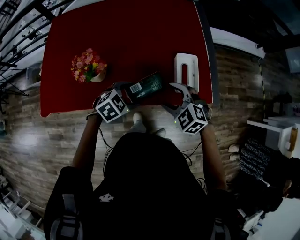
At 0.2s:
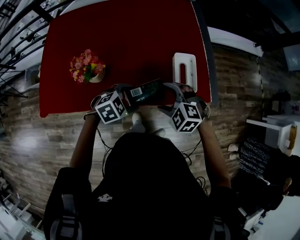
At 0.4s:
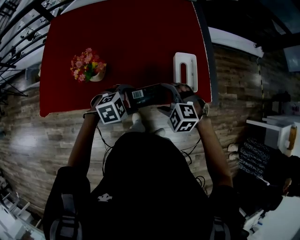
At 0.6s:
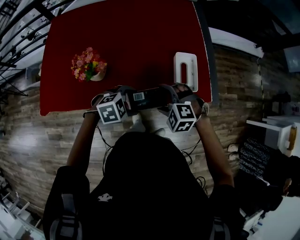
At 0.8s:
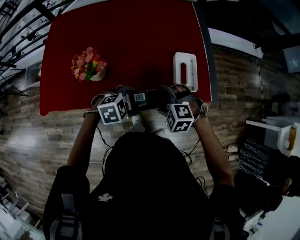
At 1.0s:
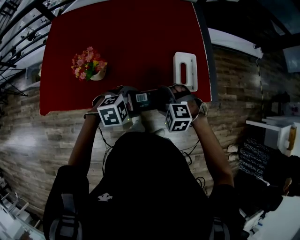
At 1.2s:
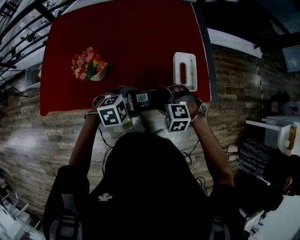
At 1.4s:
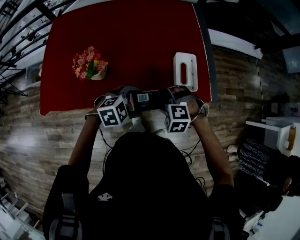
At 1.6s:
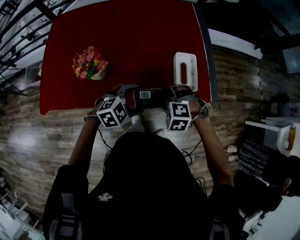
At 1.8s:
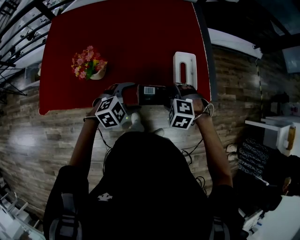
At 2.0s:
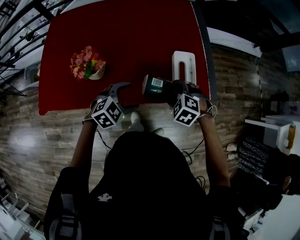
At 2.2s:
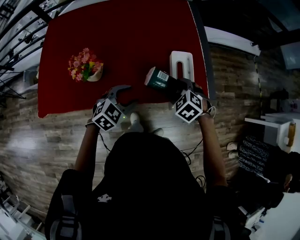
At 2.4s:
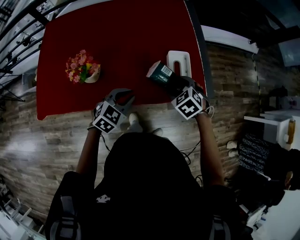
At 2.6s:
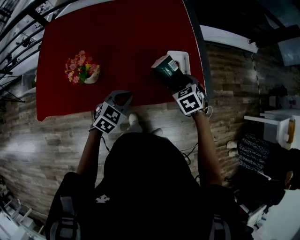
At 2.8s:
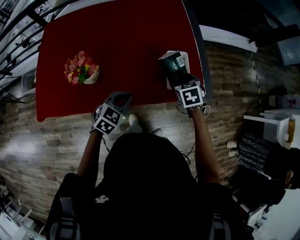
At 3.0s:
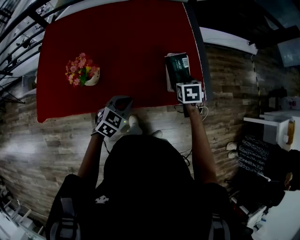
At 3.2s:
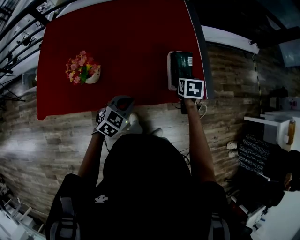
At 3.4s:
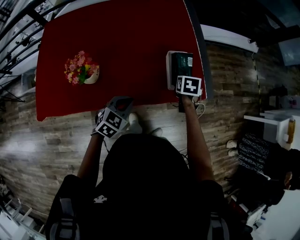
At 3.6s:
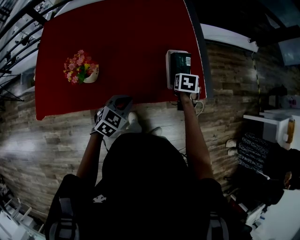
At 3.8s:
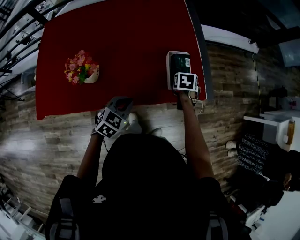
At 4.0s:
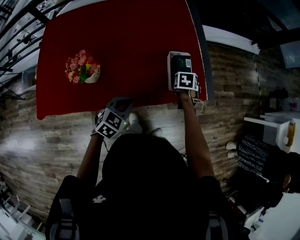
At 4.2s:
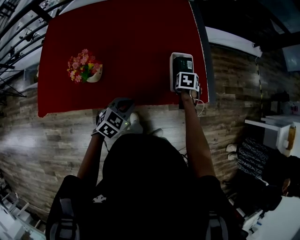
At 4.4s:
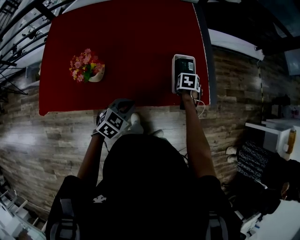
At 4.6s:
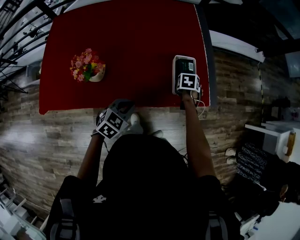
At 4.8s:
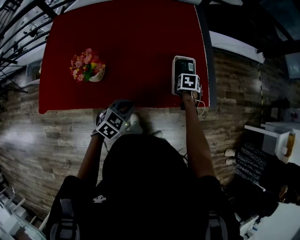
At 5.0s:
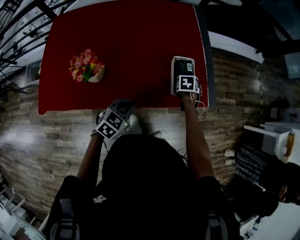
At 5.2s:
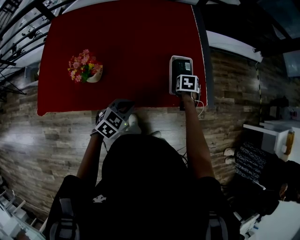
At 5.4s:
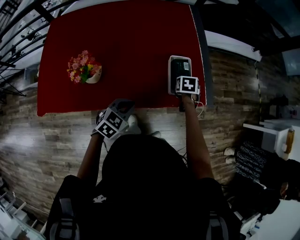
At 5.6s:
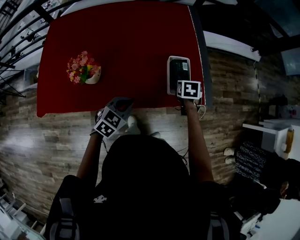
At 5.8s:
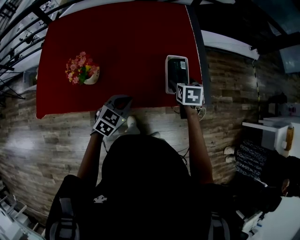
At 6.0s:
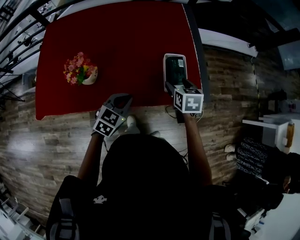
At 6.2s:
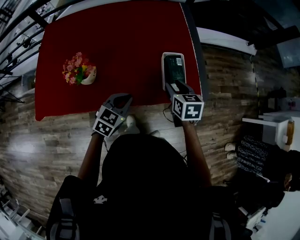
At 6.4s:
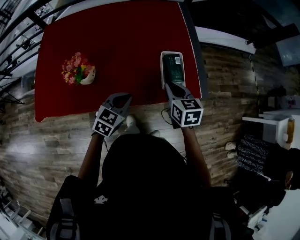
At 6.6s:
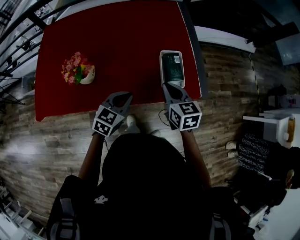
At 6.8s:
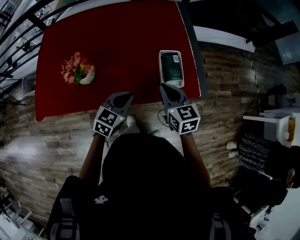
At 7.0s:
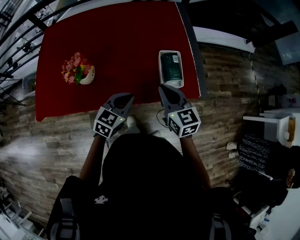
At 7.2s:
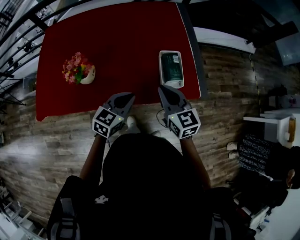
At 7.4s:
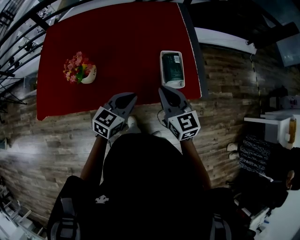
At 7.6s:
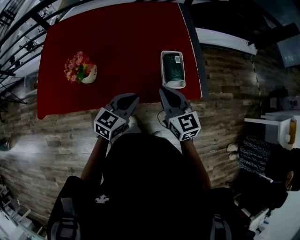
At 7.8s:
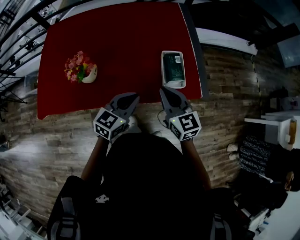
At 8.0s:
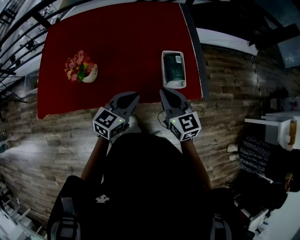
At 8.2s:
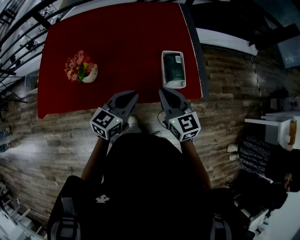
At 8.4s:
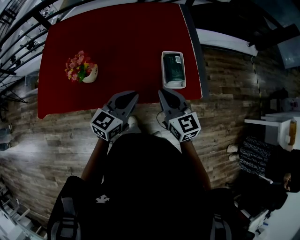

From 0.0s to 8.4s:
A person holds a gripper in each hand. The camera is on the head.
From 0.0s to 1.4s: The right gripper shifts by about 5 cm, and swivels some 30 degrees. The left gripper shifts by roughly 5 cm.
From 1.4s to 2.8s: The left gripper rotates approximately 30 degrees, and closes its fingers. Meanwhile the right gripper goes about 15 cm forward and to the right, and twists some 70 degrees clockwise, seen from behind.
From 2.8s to 4.2s: The right gripper shifts about 10 cm downward, and swivels roughly 30 degrees.
From 4.2s to 5.6s: The right gripper is displaced upward by about 5 cm.
From 5.6s to 7.0s: The right gripper shifts some 20 cm upward, backward and to the left, angles its fingers upward, by roughly 40 degrees, and closes. Meanwhile the left gripper changes place by some 5 cm.
From 7.0s to 8.4s: The left gripper heads upward, covering about 5 cm.

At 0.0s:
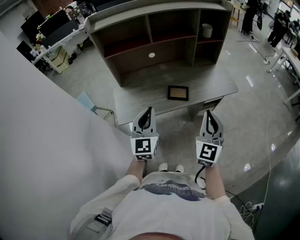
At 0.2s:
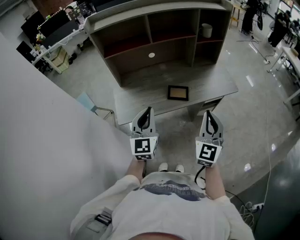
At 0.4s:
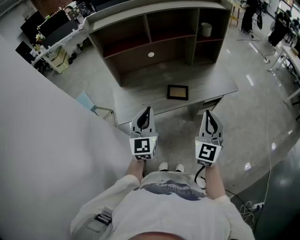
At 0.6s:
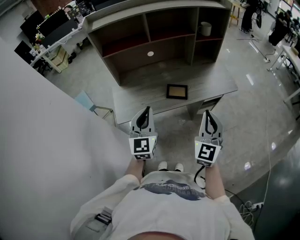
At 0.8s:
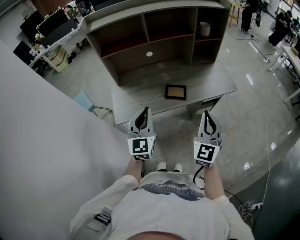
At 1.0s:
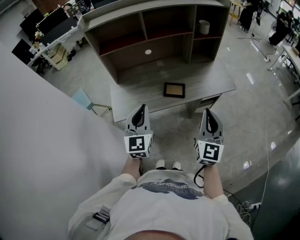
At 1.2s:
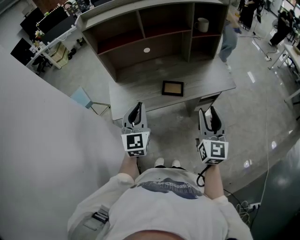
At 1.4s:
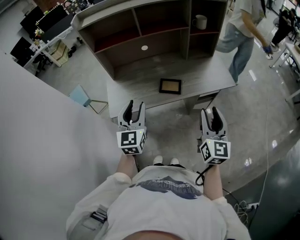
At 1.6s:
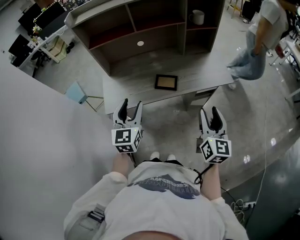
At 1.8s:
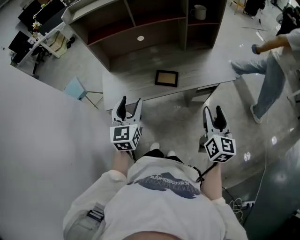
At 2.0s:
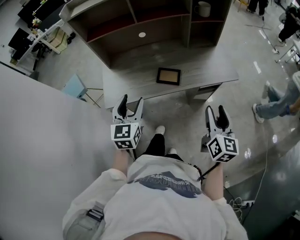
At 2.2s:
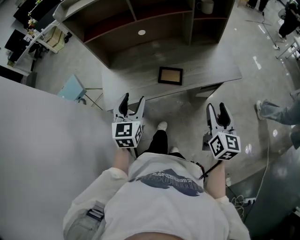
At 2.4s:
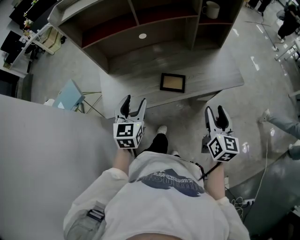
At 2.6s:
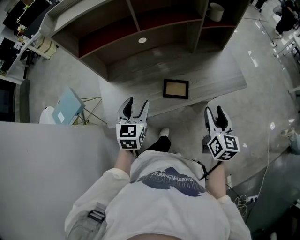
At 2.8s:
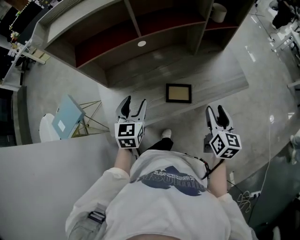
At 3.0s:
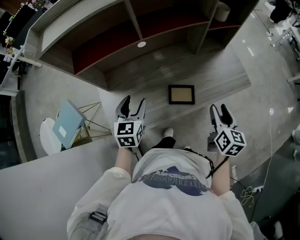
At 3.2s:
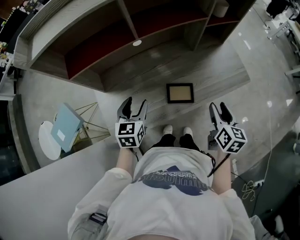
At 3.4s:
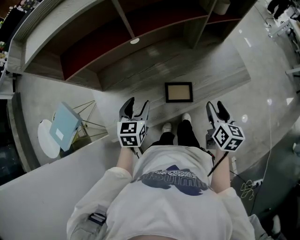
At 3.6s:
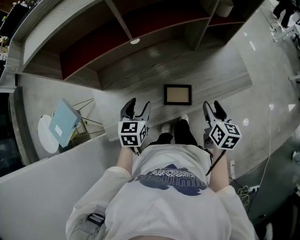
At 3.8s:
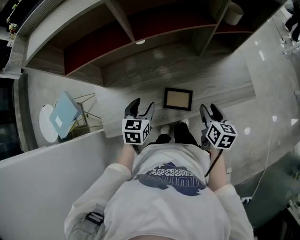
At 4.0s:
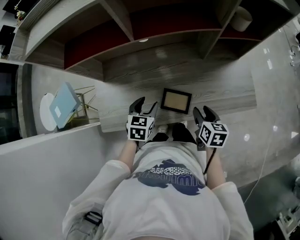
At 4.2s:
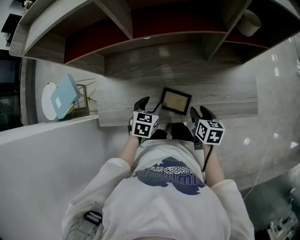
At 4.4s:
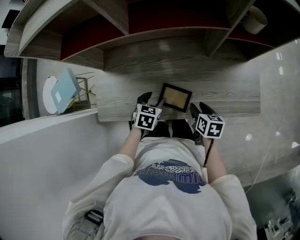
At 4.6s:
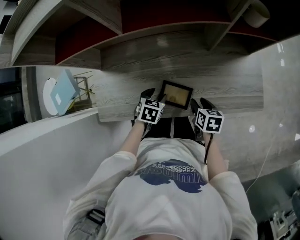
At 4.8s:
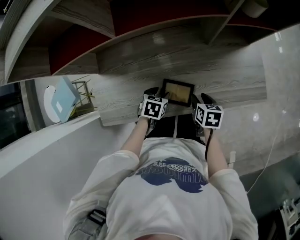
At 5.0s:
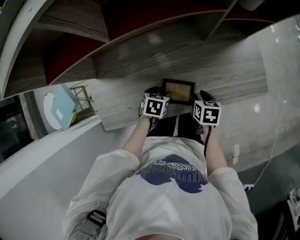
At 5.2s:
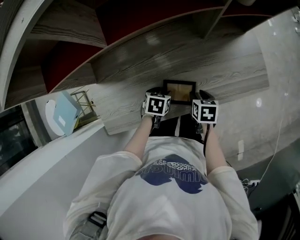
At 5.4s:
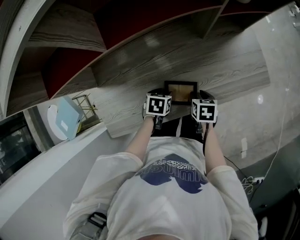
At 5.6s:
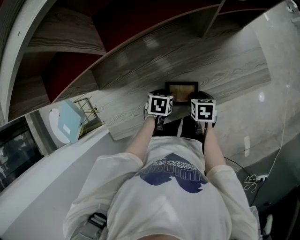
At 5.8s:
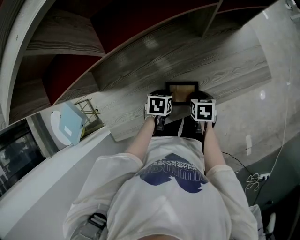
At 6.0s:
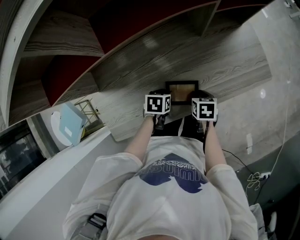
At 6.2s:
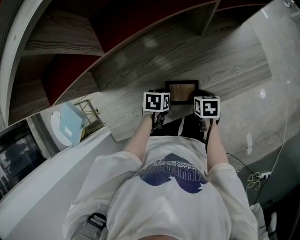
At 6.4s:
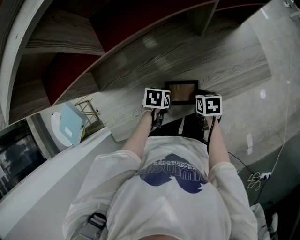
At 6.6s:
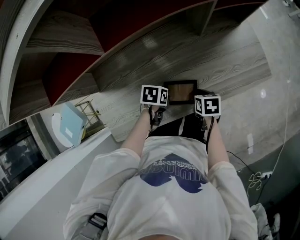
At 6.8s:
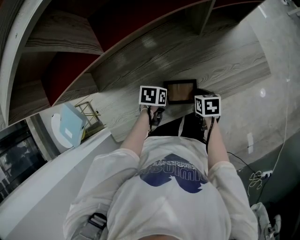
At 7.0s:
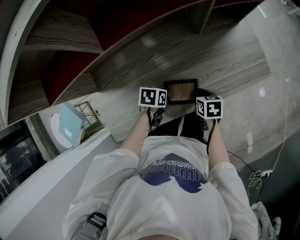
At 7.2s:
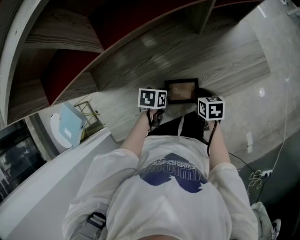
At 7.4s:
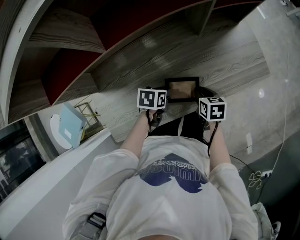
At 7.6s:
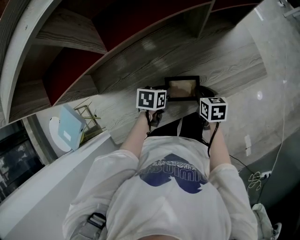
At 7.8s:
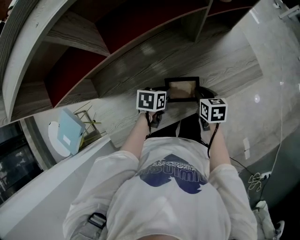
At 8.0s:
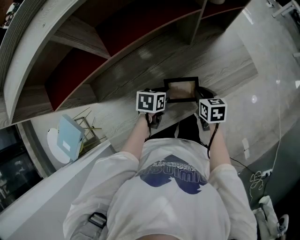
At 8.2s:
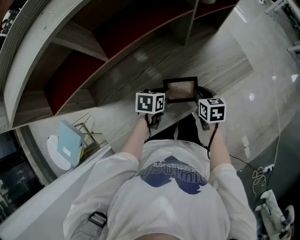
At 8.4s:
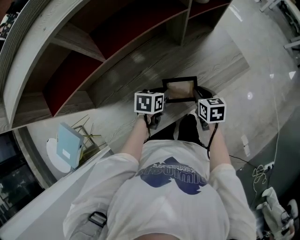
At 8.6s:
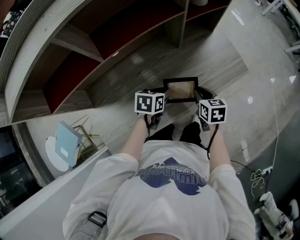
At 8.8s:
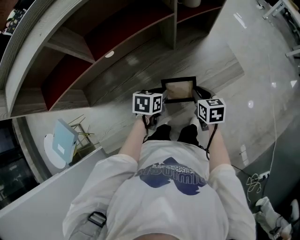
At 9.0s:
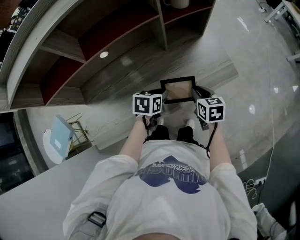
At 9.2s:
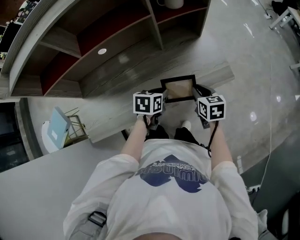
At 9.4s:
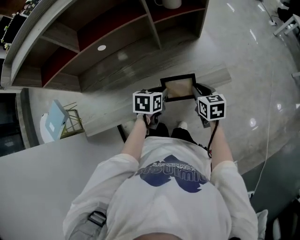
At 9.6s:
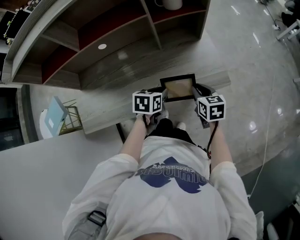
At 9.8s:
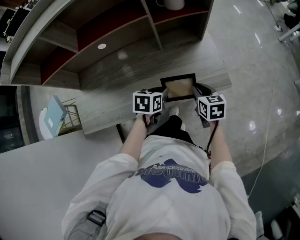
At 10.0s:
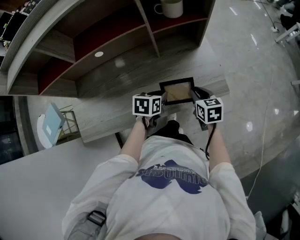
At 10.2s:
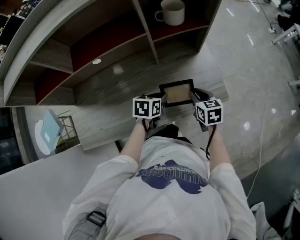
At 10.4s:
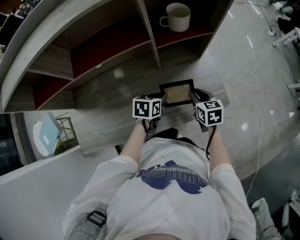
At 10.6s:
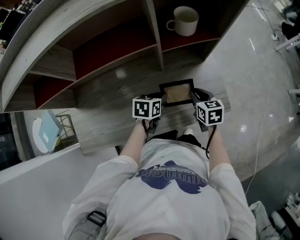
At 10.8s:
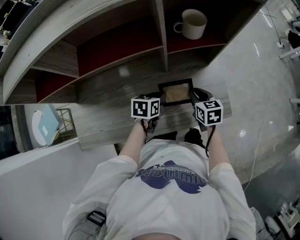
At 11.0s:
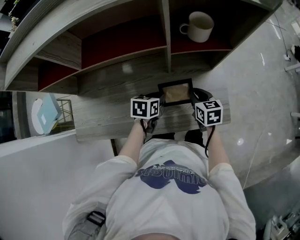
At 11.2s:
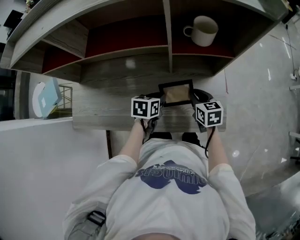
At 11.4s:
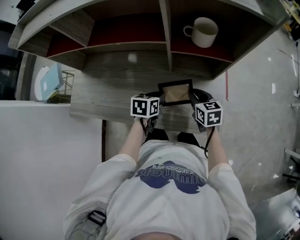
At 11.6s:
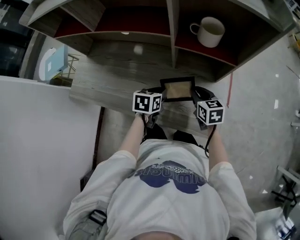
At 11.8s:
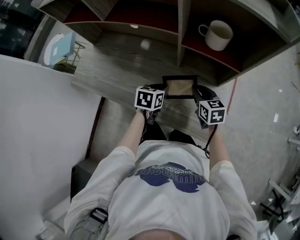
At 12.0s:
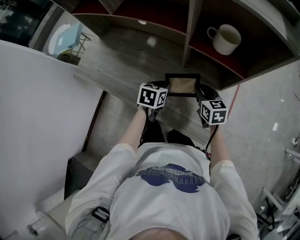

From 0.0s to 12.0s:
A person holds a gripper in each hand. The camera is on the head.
From 0.0s to 1.6s: The right gripper shifts approximately 10 cm to the right, turns by approximately 30 degrees, and opens. The left gripper opens up.
From 1.6s to 3.0s: The left gripper goes approximately 30 cm forward, downward and to the left, and changes its angle by about 20 degrees. The right gripper heads forward and downward, covering about 25 cm, and changes its angle by approximately 20 degrees.
From 3.0s to 4.4s: The right gripper moves downward and forward, some 20 cm, and rotates some 40 degrees. Meanwhile the left gripper goes approximately 20 cm downward and to the right, and rotates approximately 30 degrees.
From 4.4s to 6.0s: The grippers both shift downward by approximately 5 cm. The left gripper changes its angle by about 20 degrees.
From 6.0s to 7.6s: The left gripper ends up approximately 5 cm from where it was, and closes up; the right gripper changes place by some 5 cm.
From 7.6s to 9.0s: Both grippers travel together to the right and upward, approximately 15 cm.
From 9.0s to 10.4s: Both grippers move forward and to the right, approximately 10 cm.
From 10.4s to 12.0s: The left gripper rotates roughly 40 degrees. The right gripper moves some 10 cm, and turns by approximately 40 degrees.

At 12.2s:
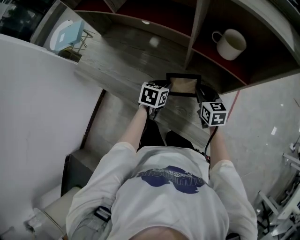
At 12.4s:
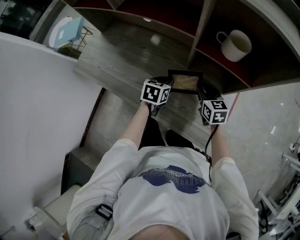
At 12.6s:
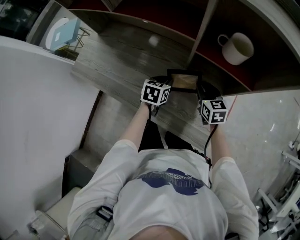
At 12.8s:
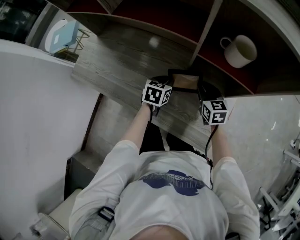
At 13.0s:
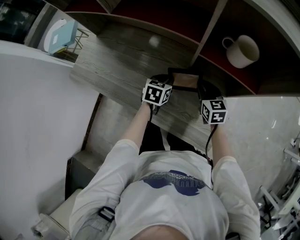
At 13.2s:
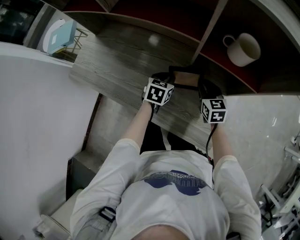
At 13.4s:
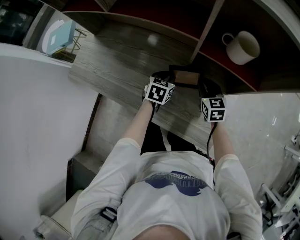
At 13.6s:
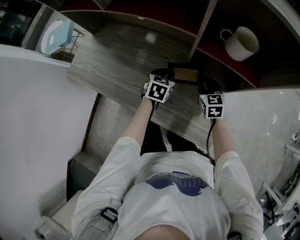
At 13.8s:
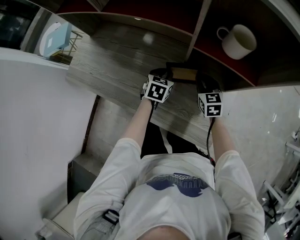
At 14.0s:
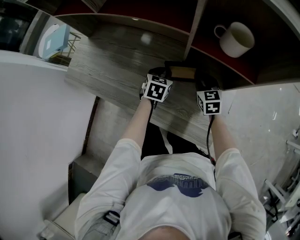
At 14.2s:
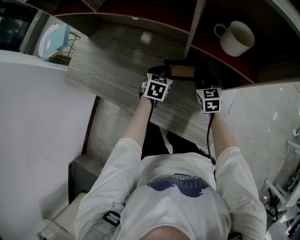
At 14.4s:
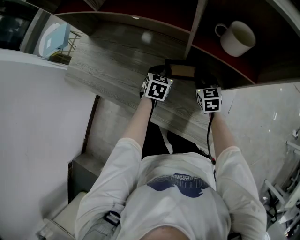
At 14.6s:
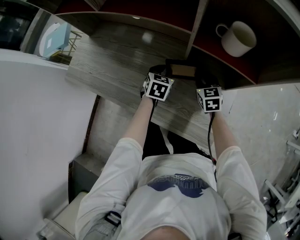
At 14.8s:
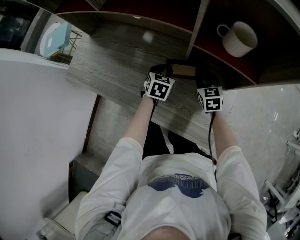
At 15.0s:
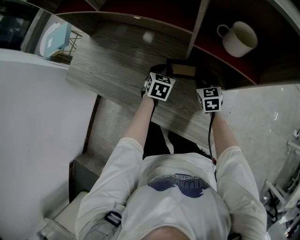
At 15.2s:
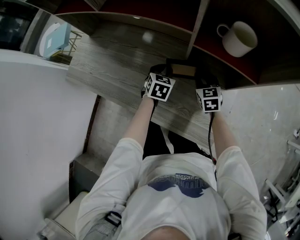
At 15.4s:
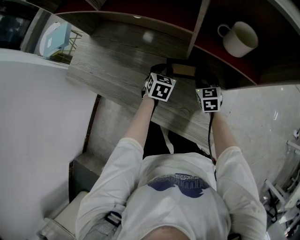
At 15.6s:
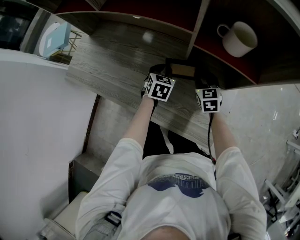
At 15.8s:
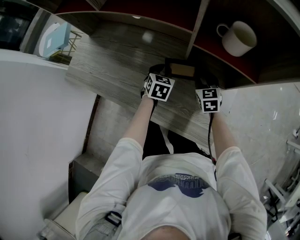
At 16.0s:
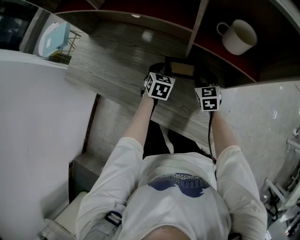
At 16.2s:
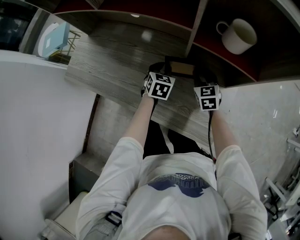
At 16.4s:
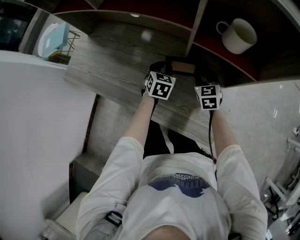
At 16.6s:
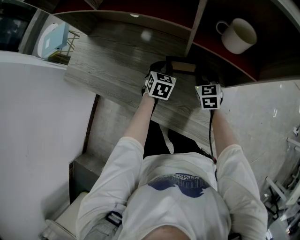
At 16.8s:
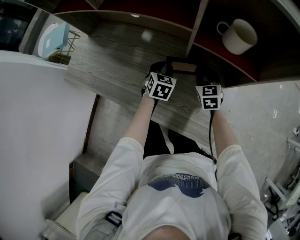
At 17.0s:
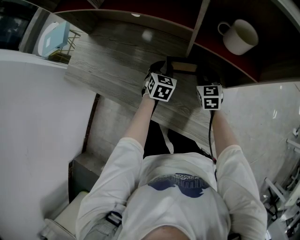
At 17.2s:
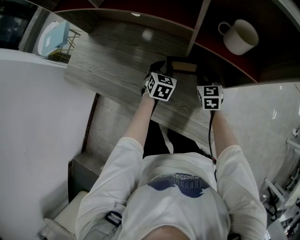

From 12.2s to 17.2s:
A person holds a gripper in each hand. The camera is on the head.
From 12.2s to 13.8s: The two grippers go some 5 cm forward.
From 13.8s to 17.2s: There are only small adjustments of the grippers.
